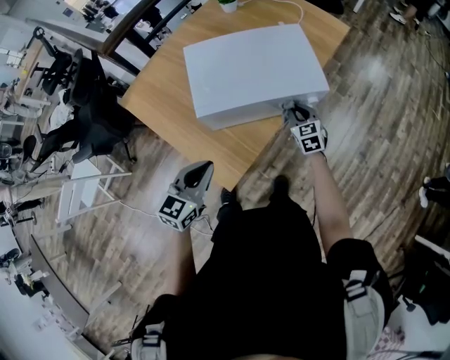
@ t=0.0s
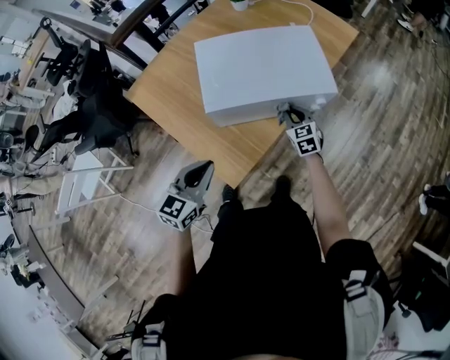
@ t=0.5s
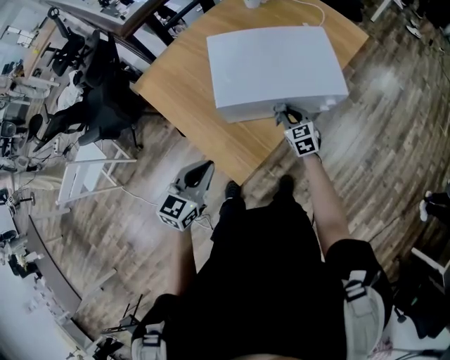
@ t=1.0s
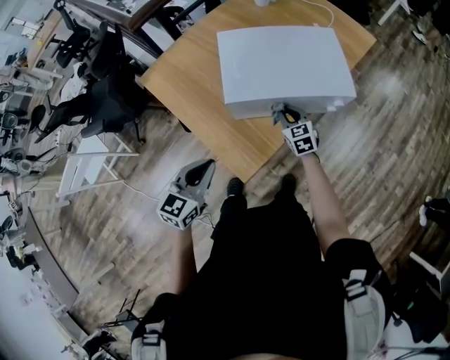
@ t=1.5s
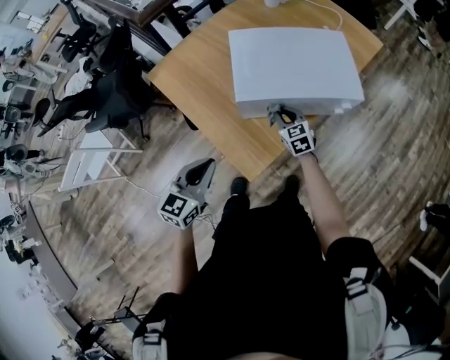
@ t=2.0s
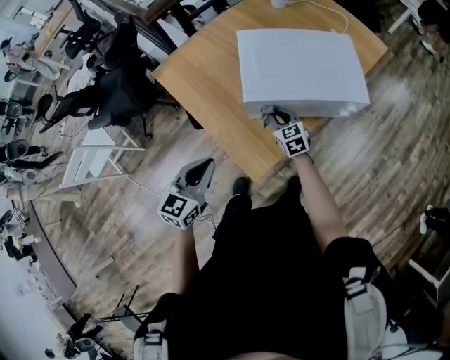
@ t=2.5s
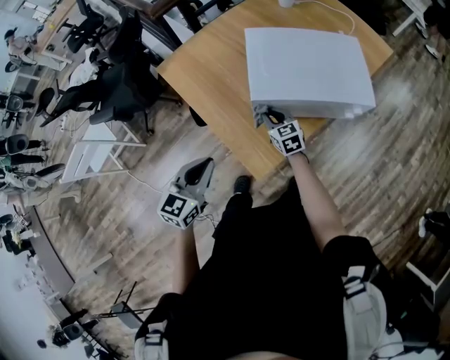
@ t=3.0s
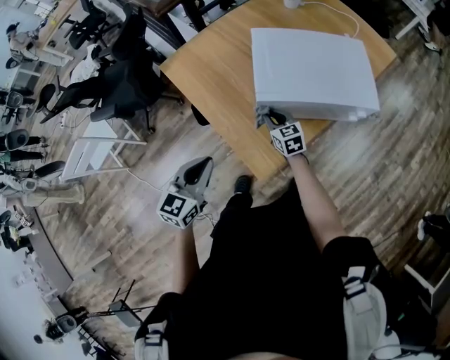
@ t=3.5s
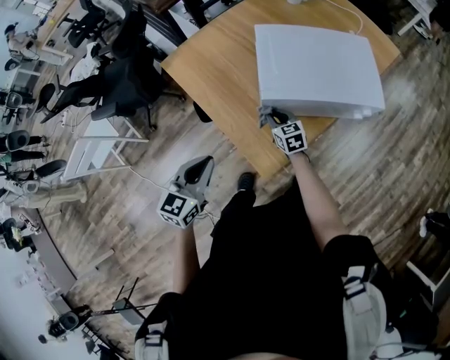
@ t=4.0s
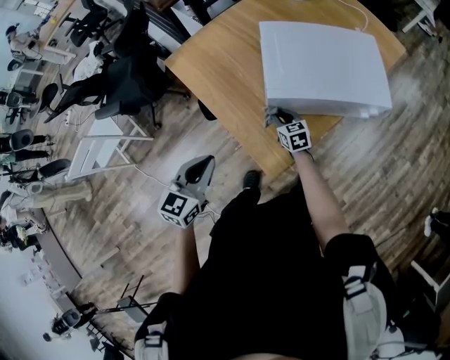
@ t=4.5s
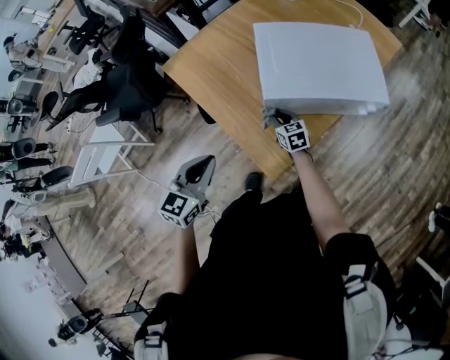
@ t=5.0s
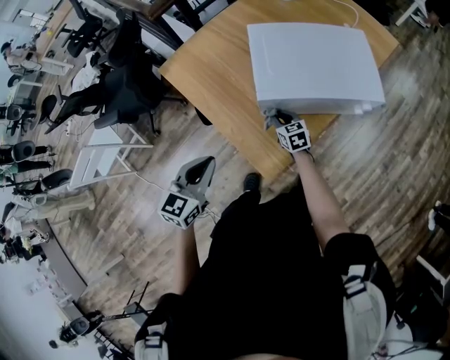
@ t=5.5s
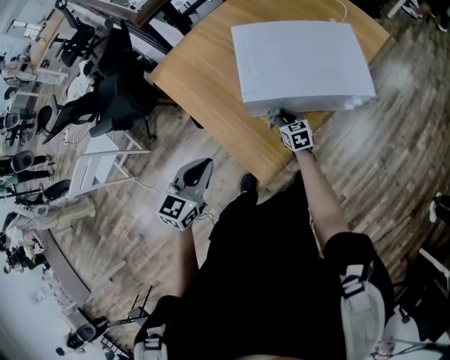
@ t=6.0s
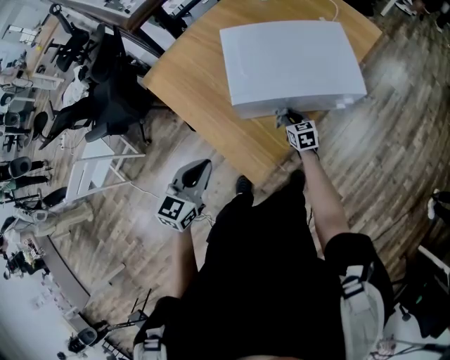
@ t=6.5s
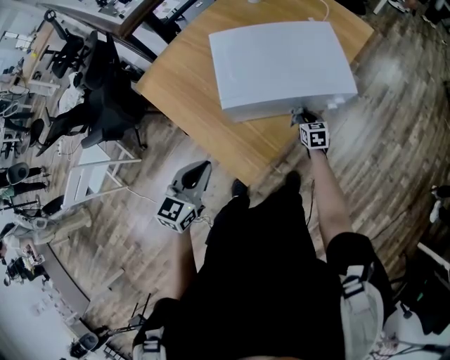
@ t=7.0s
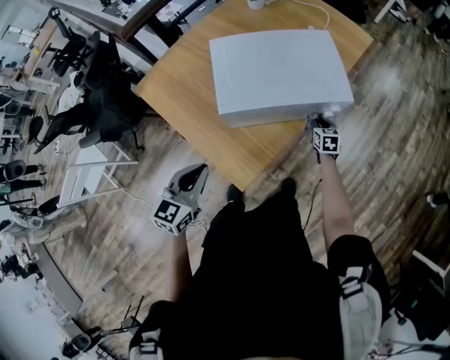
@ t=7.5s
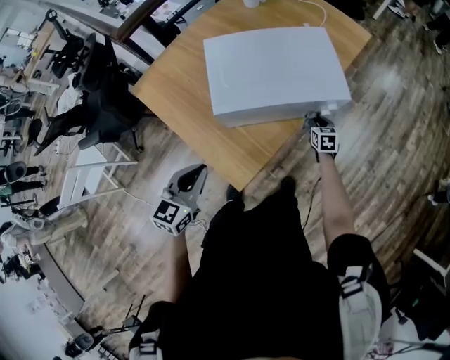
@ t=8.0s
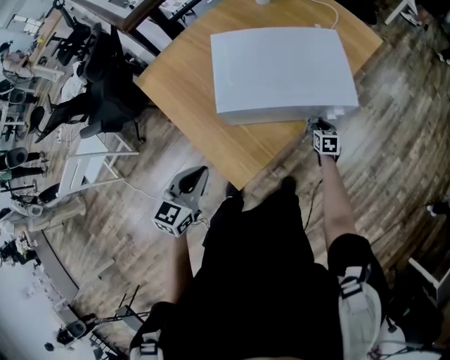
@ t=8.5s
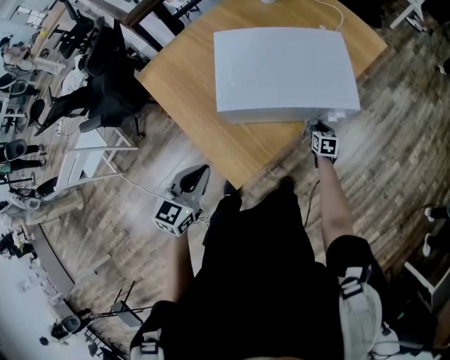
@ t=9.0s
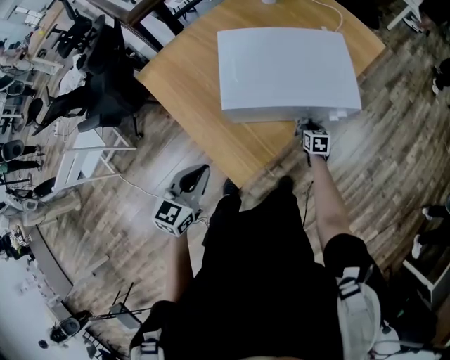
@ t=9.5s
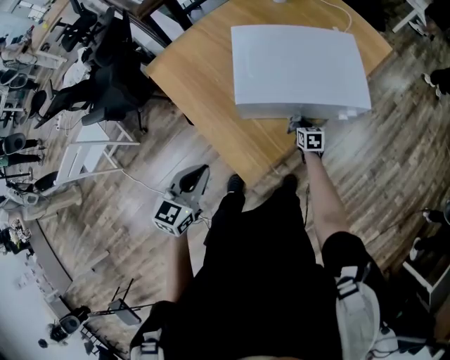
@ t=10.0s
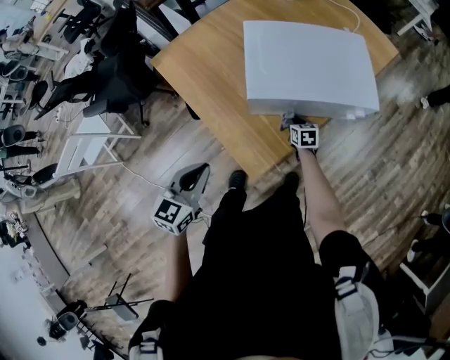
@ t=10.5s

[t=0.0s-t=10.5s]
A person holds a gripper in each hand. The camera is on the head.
t=0.0s to t=2.0s: The left gripper is displaced to the left by approximately 10 cm. Meanwhile the right gripper travels to the left by about 20 cm.
t=2.0s to t=4.0s: The grippers both shift to the left by about 10 cm.
t=4.0s to t=6.5s: The right gripper travels to the right by some 15 cm. Meanwhile the left gripper heads to the right, covering roughly 5 cm.
t=6.5s to t=8.5s: The right gripper is displaced to the right by some 20 cm.
t=8.5s to t=10.5s: The right gripper moves to the left, roughly 20 cm. The left gripper shifts about 5 cm to the left.

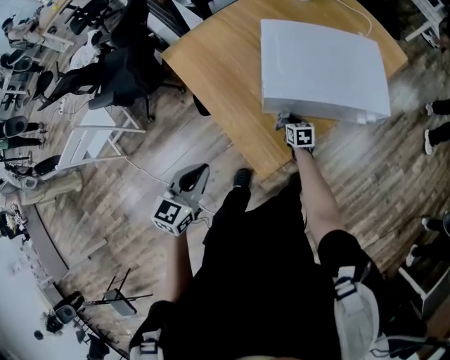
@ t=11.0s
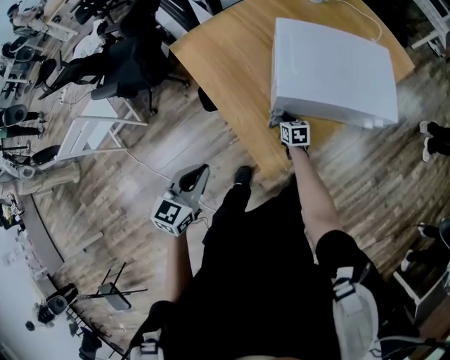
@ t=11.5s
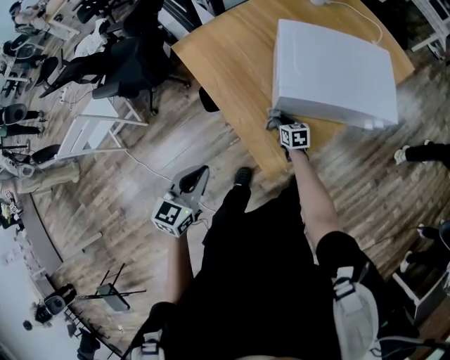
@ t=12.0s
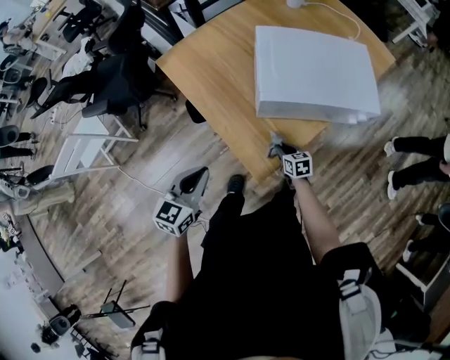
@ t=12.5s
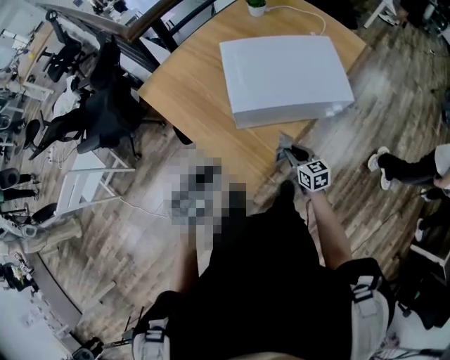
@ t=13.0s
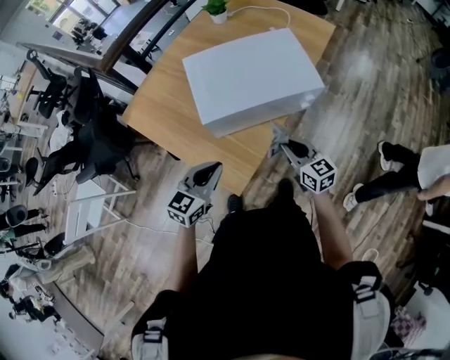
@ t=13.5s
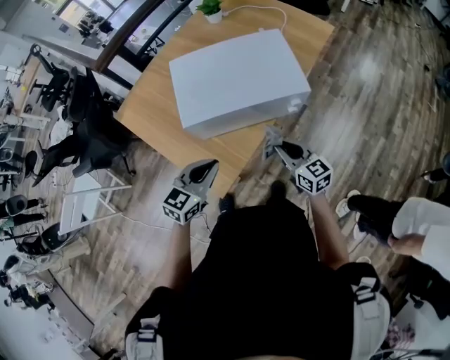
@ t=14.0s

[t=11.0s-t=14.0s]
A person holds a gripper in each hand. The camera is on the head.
t=11.0s to t=12.5s: The right gripper is displaced backward by roughly 10 cm.
t=12.5s to t=14.0s: The right gripper heads upward and to the right, covering some 30 cm, and turns by some 30 degrees. The left gripper goes some 25 cm to the right and forward, and rotates about 20 degrees.

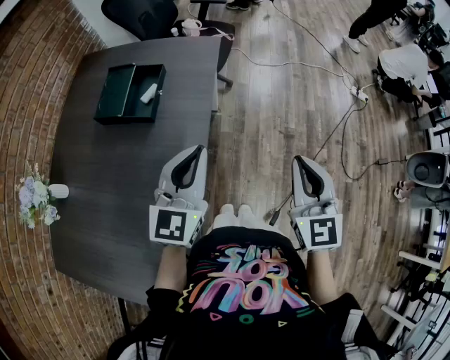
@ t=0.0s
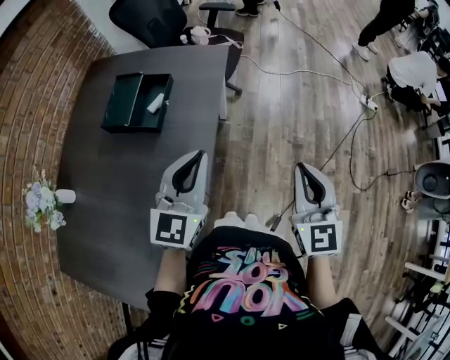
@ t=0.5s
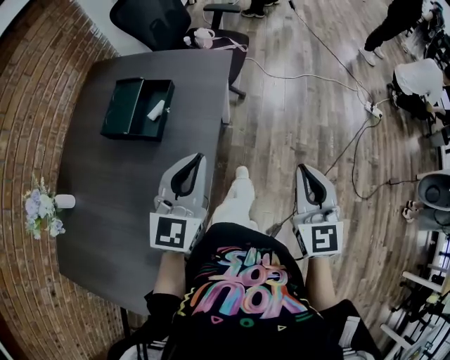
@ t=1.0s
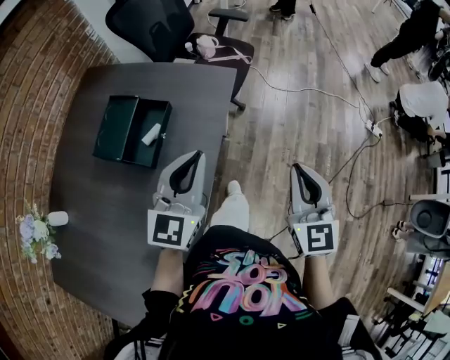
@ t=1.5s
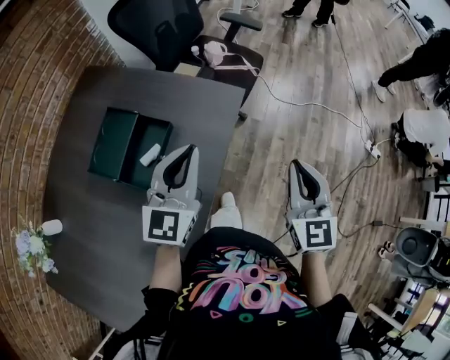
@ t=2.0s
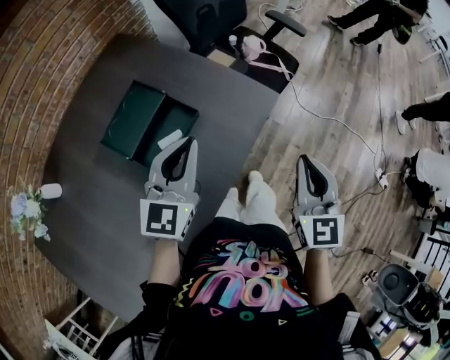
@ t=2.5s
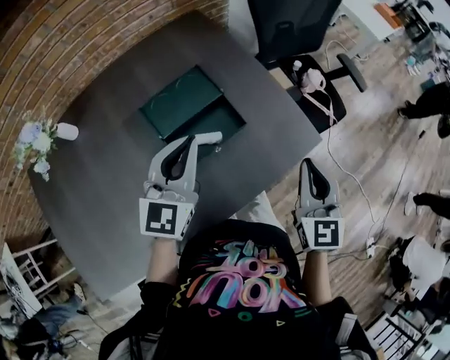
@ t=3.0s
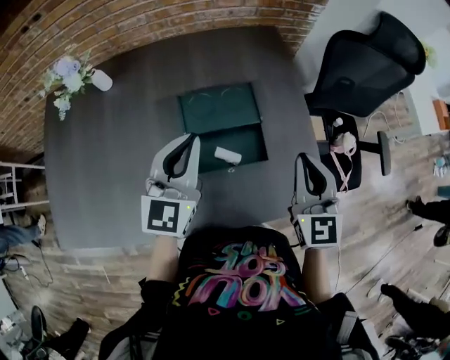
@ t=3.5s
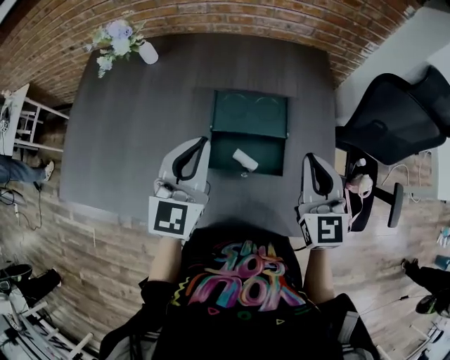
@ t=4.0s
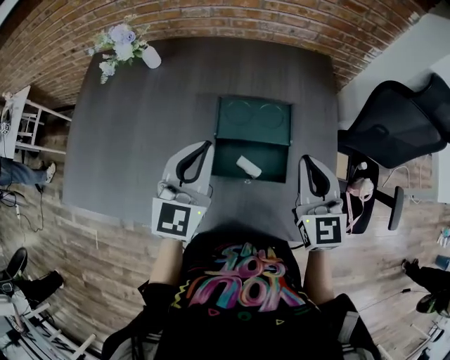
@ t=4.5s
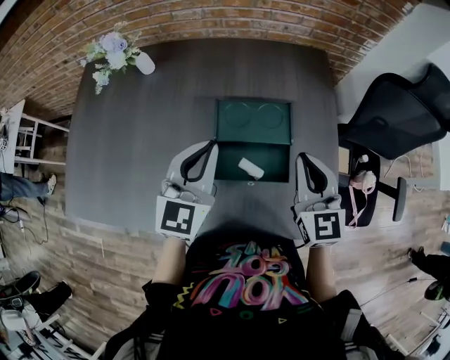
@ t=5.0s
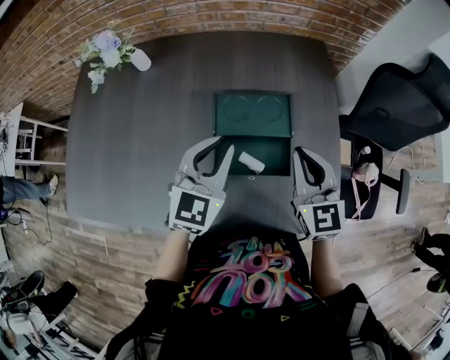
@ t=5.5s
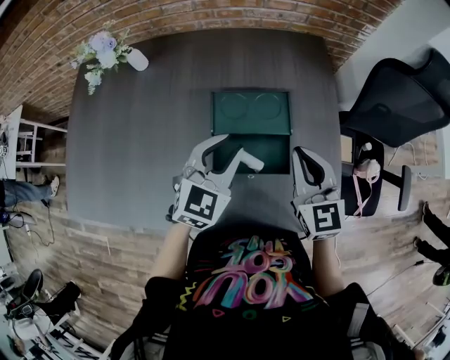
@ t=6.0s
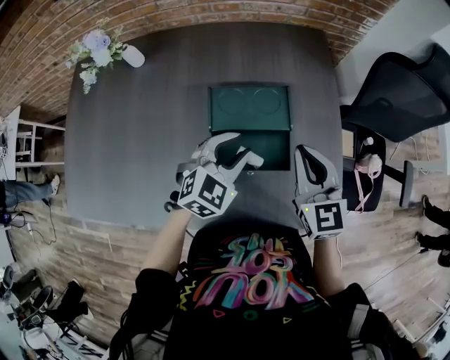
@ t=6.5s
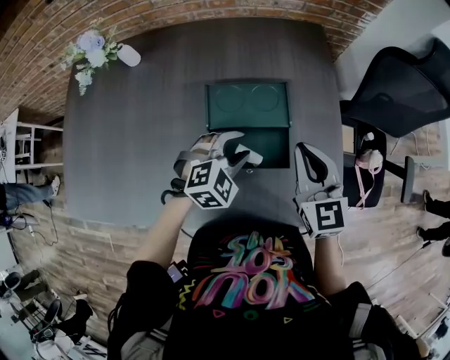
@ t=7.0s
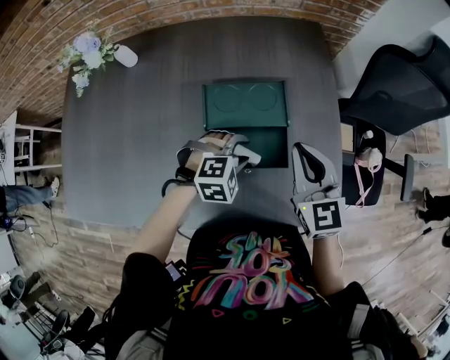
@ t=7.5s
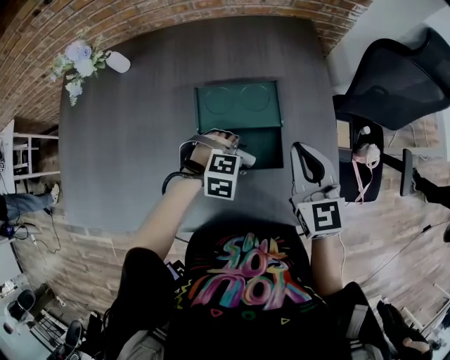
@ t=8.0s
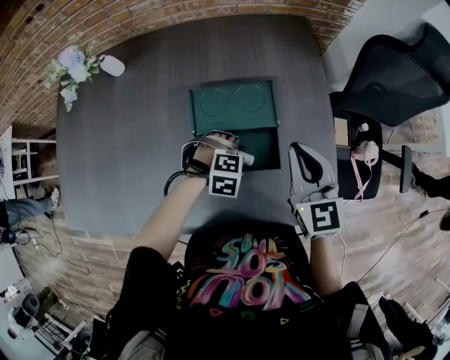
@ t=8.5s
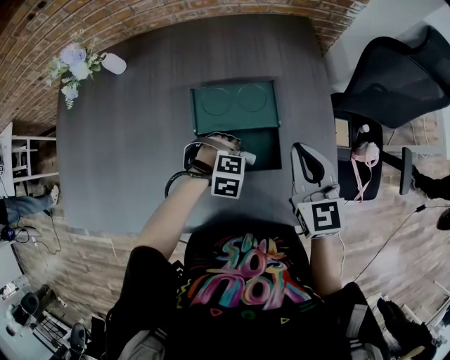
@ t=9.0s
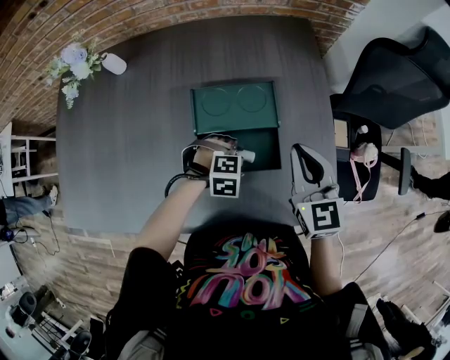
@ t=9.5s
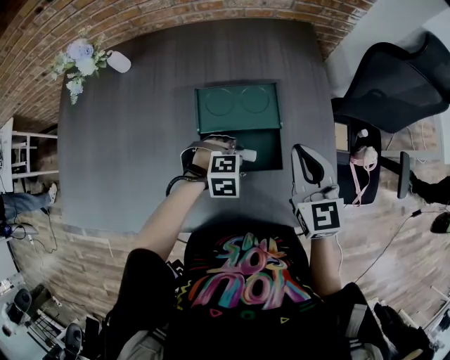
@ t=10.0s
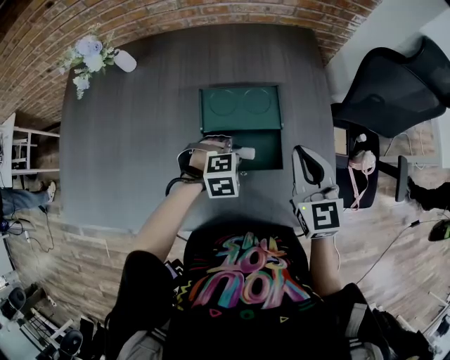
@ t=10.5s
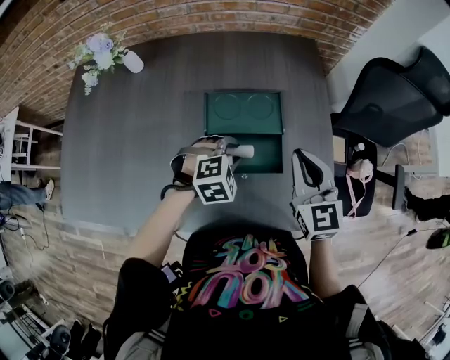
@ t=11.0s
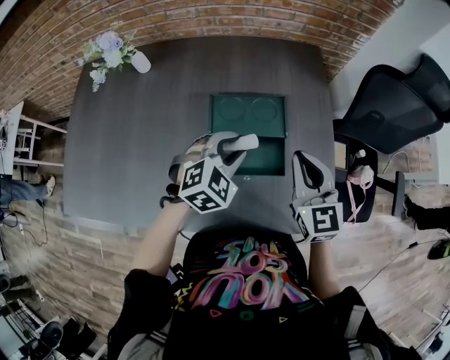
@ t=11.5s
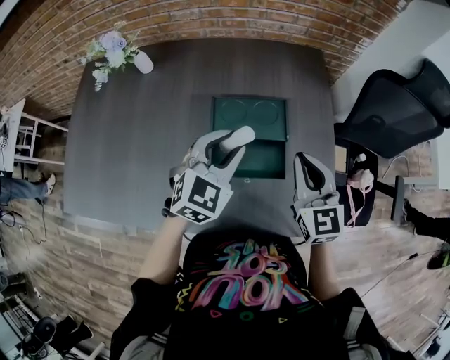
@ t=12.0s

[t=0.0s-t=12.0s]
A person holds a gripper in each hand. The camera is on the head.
t=0.0s to t=2.0s: Both grippers move forward, some 30 cm.
t=2.0s to t=4.0s: The left gripper moves some 20 cm, and rotates approximately 80 degrees. Meanwhile the right gripper changes place by roughly 40 cm, and swivels approximately 80 degrees.
t=4.0s to t=6.0s: The left gripper goes about 10 cm downward and to the right, changes its angle by about 30 degrees, and opens up. Meanwhile the right gripper shifts by about 5 cm.
t=6.0s to t=8.0s: The left gripper travels downward by some 20 cm, and tips its fingers downward by about 50 degrees.
t=8.0s to t=10.0s: The grippers stay close to where they were, moving slightly.
t=10.0s to t=12.0s: The left gripper shifts approximately 20 cm upward, and tilts its fingers some 40 degrees upward.

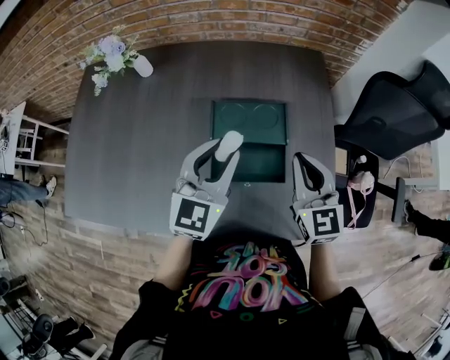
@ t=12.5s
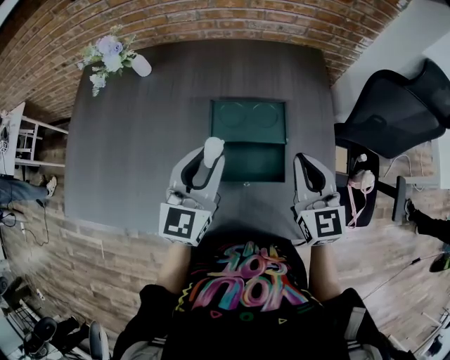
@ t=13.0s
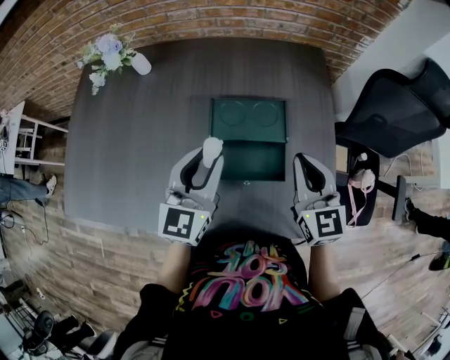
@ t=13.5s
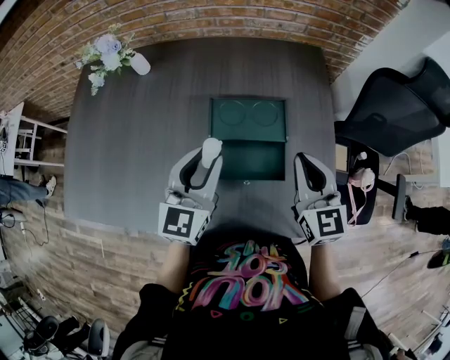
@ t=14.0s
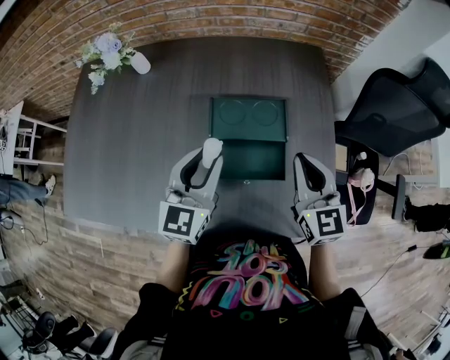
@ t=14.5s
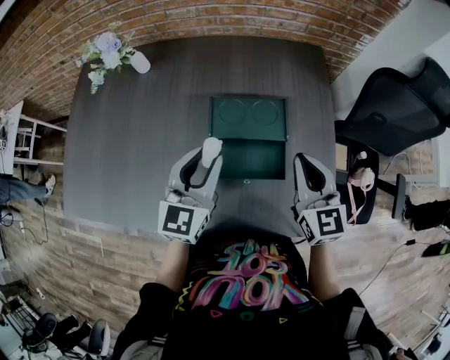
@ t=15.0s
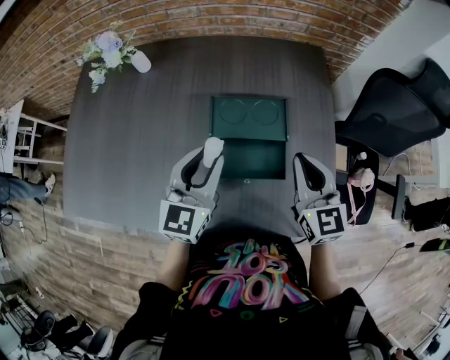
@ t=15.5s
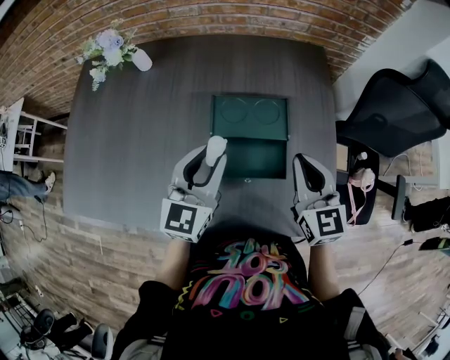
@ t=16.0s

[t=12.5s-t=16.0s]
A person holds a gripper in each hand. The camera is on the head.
t=12.5s to t=14.5s: There are only small adjustments of the grippers.
t=14.5s to t=16.0s: Both grippers stay about where they are.
